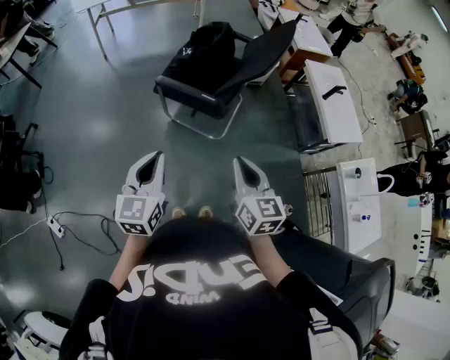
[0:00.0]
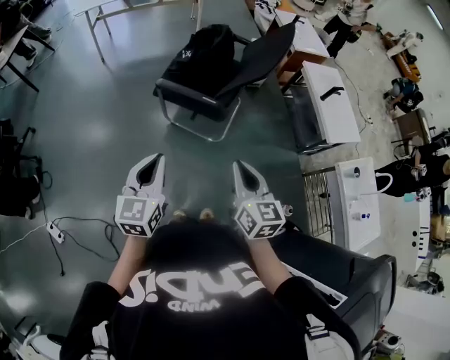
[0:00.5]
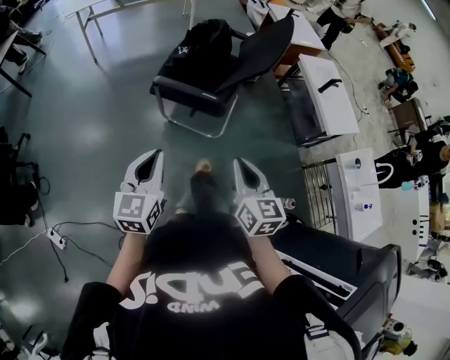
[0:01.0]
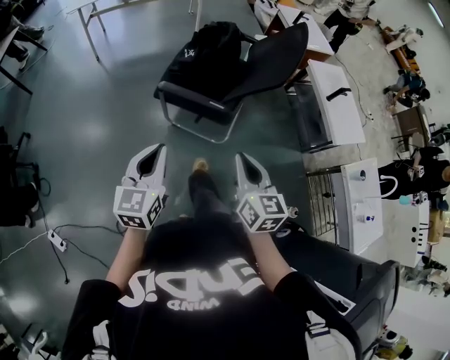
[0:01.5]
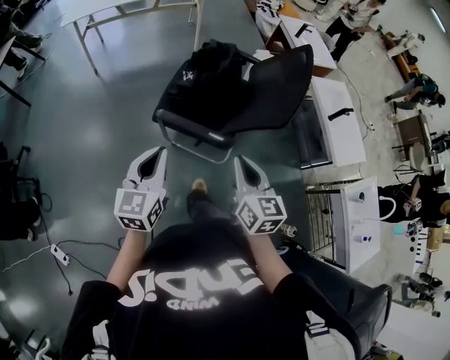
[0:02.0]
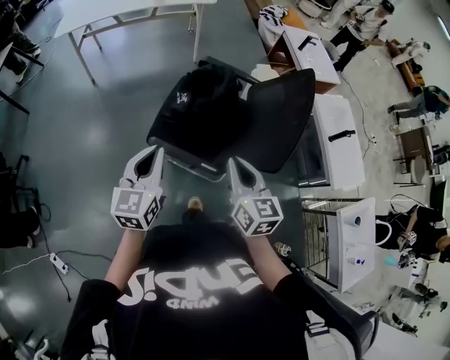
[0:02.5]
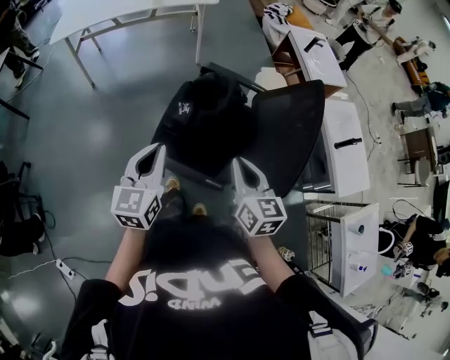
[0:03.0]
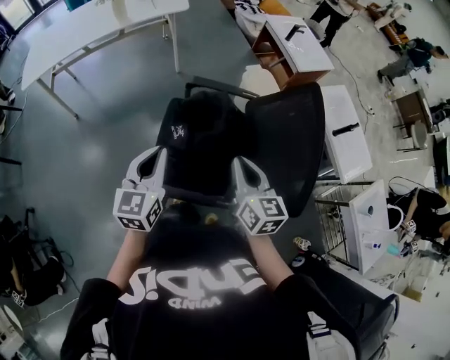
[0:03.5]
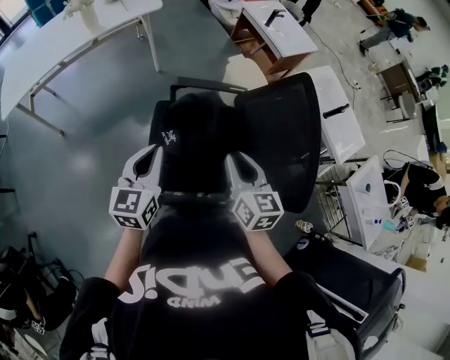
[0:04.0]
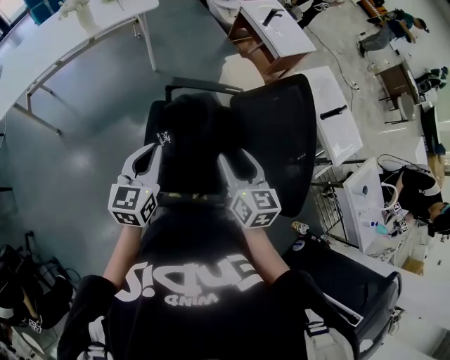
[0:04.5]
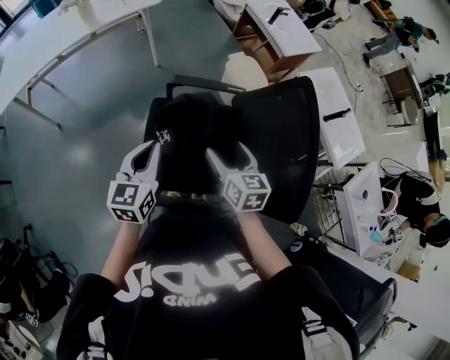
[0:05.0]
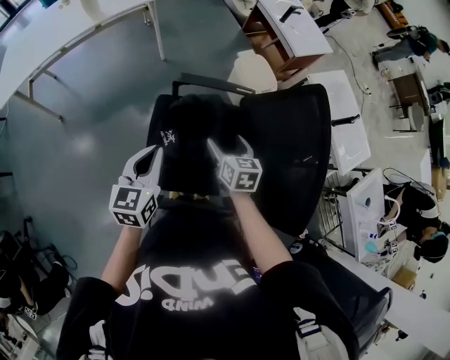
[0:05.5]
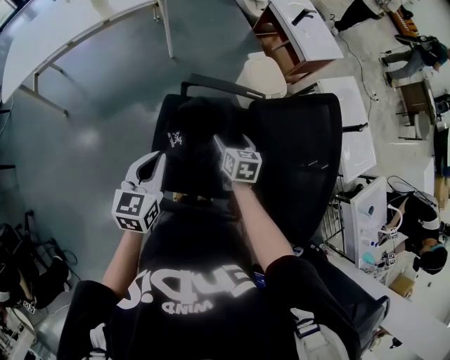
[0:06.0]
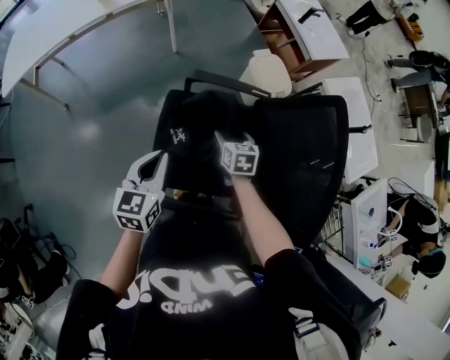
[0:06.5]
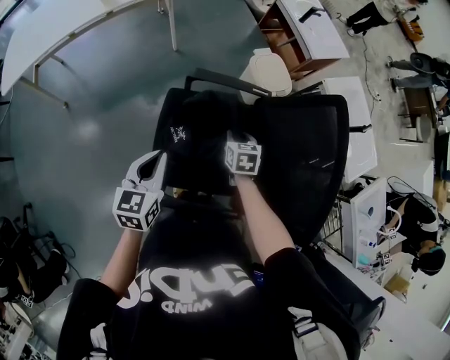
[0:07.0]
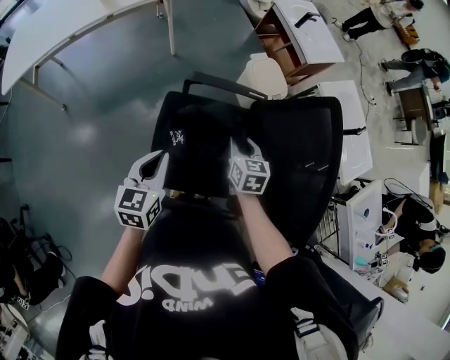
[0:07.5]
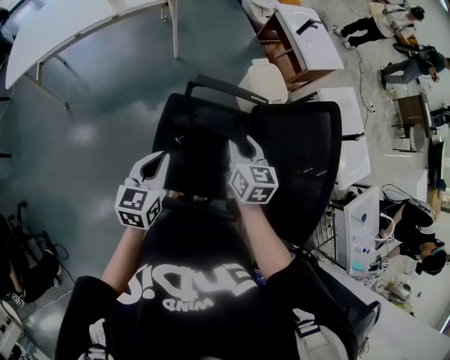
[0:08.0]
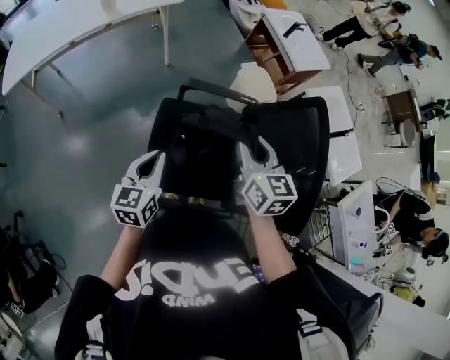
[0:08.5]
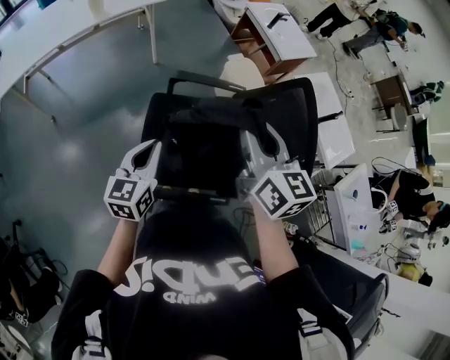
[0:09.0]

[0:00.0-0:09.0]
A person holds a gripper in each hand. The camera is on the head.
0:00.0 to 0:02.0: The grippers both shift forward by some 25 cm.
0:02.0 to 0:04.5: The pair of grippers is taken forward, about 50 cm. The right gripper opens its fingers.
0:04.5 to 0:07.0: The right gripper heads downward and forward, covering approximately 30 cm, changes its angle by roughly 30 degrees, and closes up; the left gripper travels downward and to the left by about 10 cm.
0:07.0 to 0:09.0: The left gripper moves upward and backward, about 10 cm; the right gripper travels upward by roughly 35 cm, and tips its fingers upward by approximately 40 degrees.

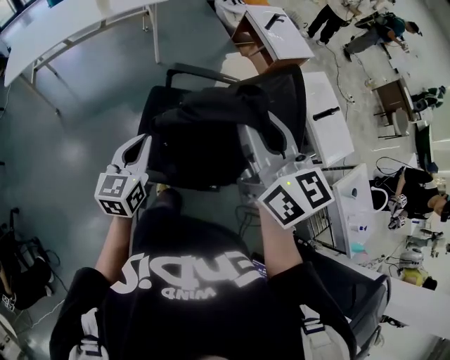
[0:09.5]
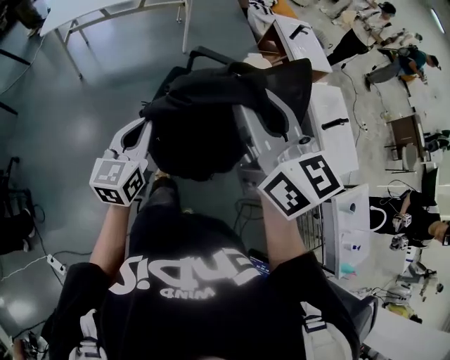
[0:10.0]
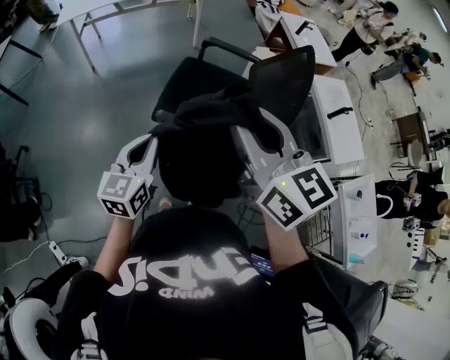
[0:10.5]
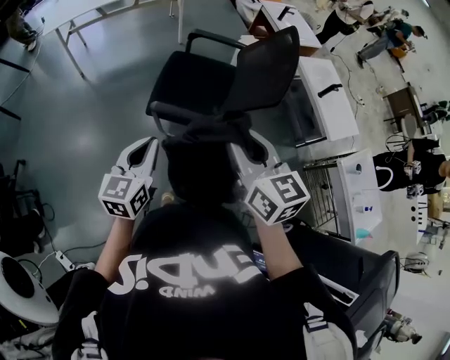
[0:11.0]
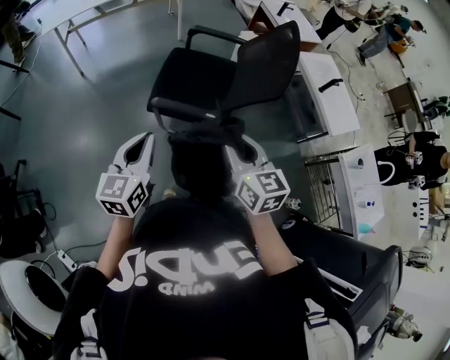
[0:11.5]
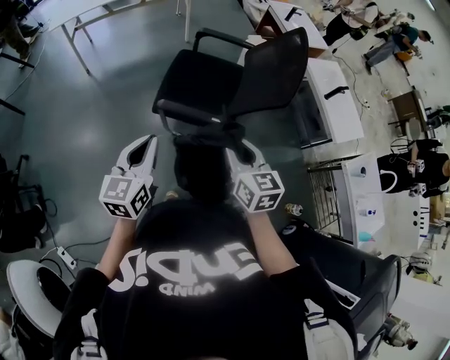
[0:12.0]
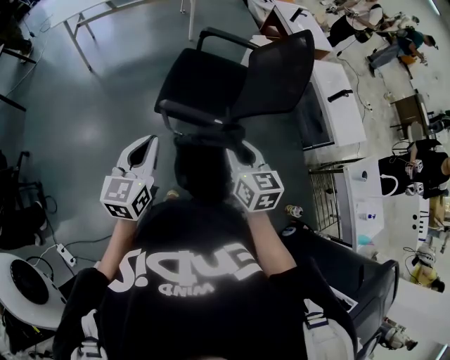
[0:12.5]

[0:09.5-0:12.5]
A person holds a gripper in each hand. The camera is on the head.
0:09.5 to 0:11.0: Both grippers travel together backward, approximately 40 cm.
0:11.0 to 0:12.5: The right gripper moves downward, some 15 cm.

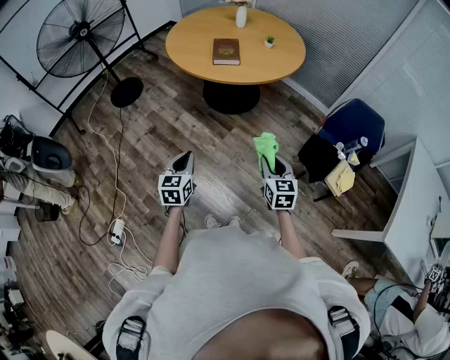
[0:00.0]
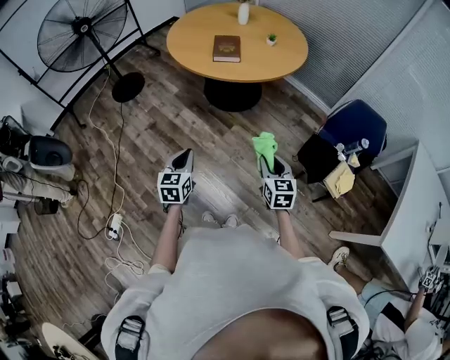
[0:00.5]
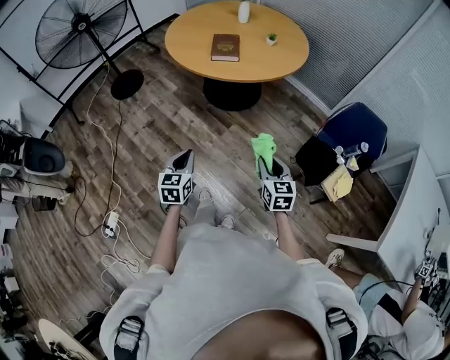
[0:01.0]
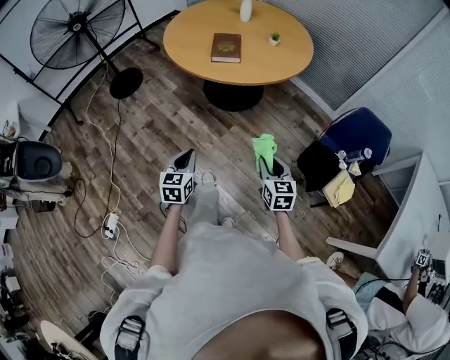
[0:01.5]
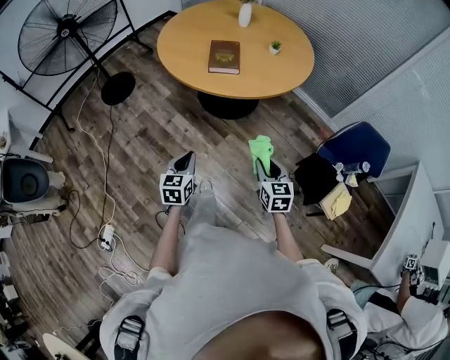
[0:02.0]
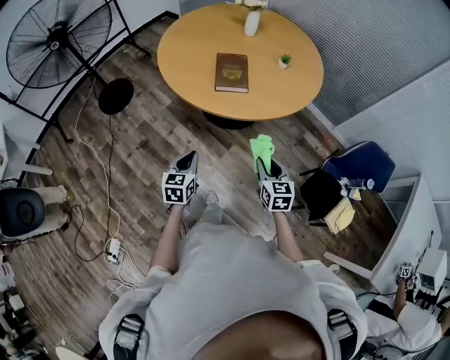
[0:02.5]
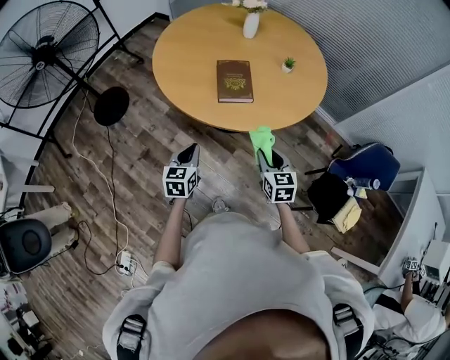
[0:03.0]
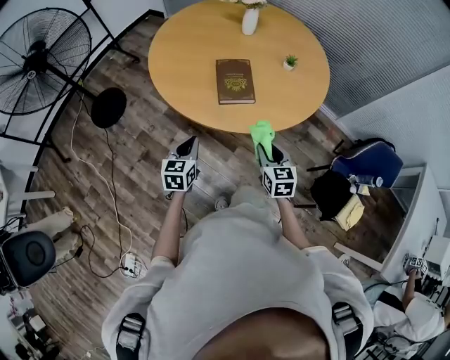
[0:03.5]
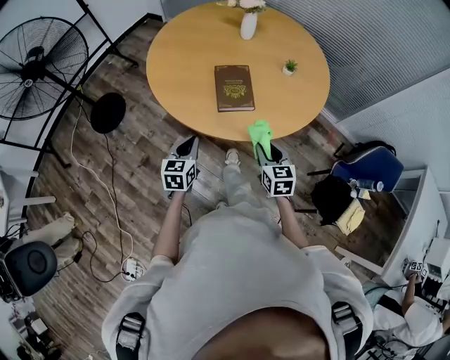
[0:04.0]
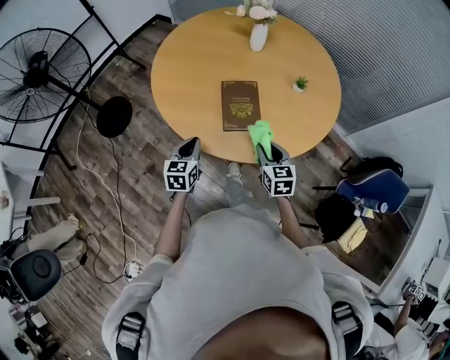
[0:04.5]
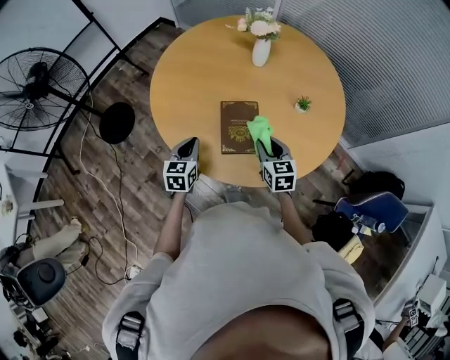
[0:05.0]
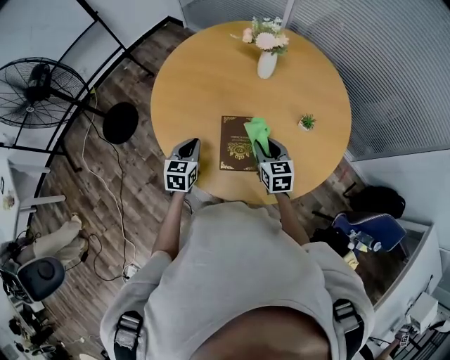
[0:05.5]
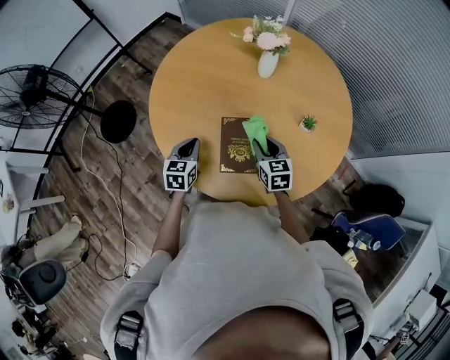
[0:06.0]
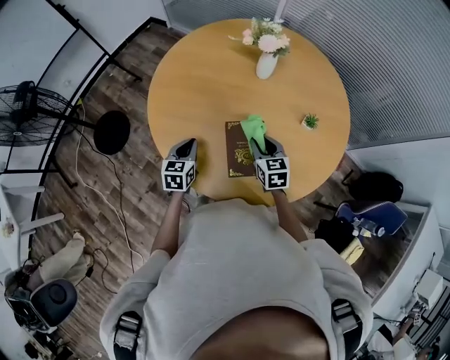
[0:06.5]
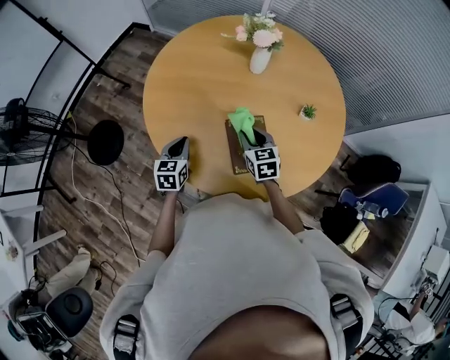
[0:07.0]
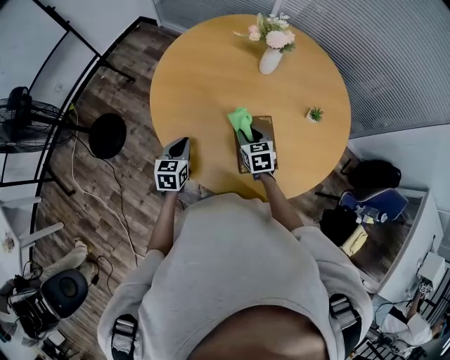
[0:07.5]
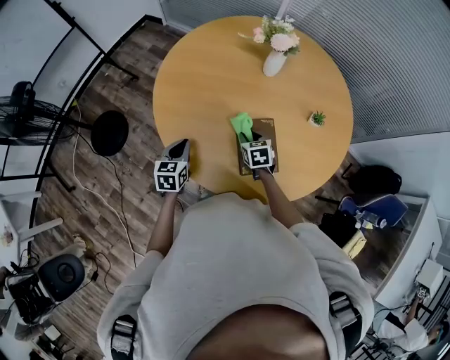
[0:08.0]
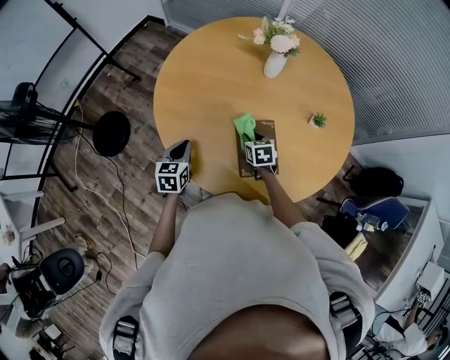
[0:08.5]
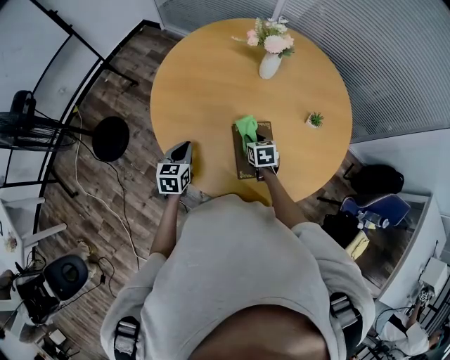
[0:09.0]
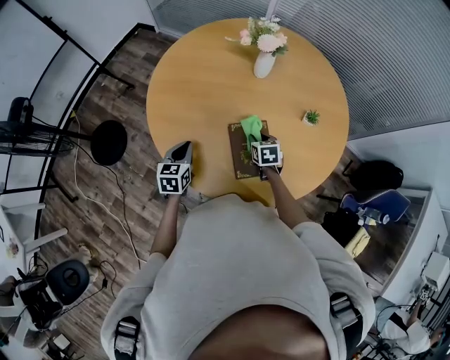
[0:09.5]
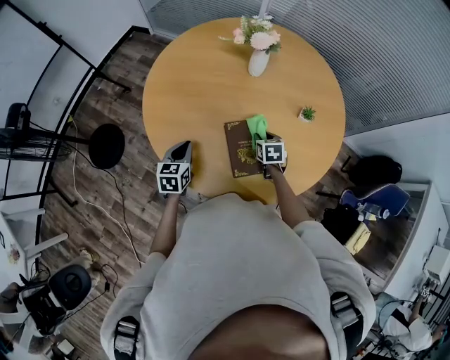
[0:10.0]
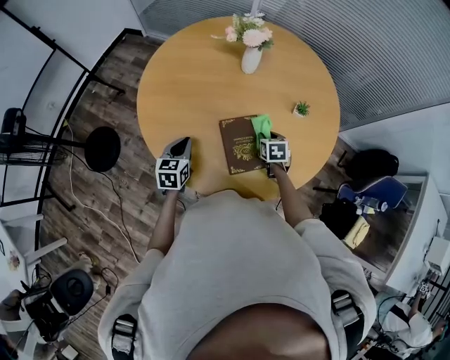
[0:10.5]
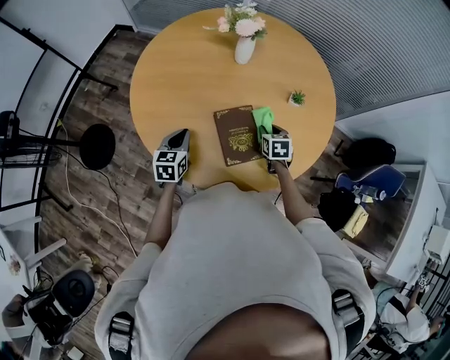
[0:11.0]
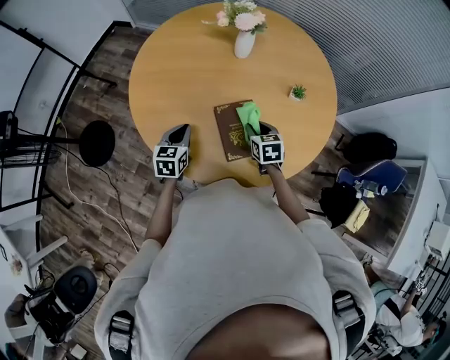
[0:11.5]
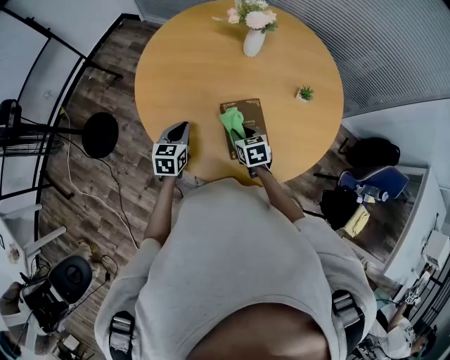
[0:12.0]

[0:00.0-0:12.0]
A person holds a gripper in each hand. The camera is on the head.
0:00.0 to 0:02.0: The two grippers go approximately 15 cm forward.
0:02.0 to 0:04.0: The left gripper moves forward, roughly 30 cm; the right gripper goes about 30 cm forward and to the left.
0:04.0 to 0:06.0: Both grippers move forward, approximately 30 cm.
0:06.0 to 0:08.0: The left gripper travels to the left by roughly 10 cm. The right gripper goes about 15 cm to the left and downward.
0:08.0 to 0:10.0: The right gripper goes some 10 cm to the right.
0:10.0 to 0:12.0: The right gripper is displaced to the left and backward by some 10 cm.

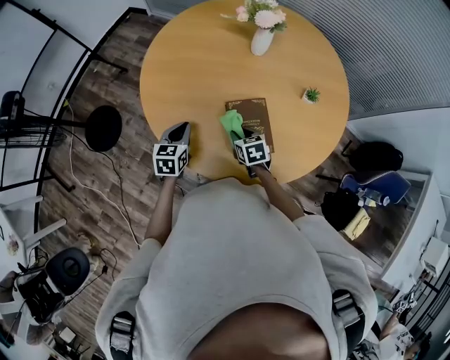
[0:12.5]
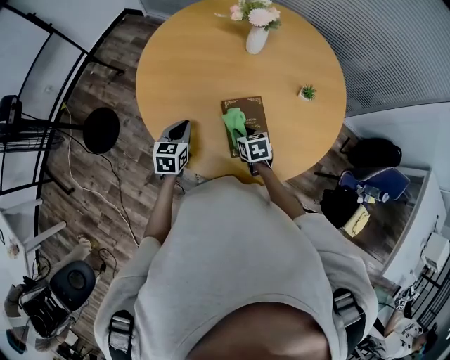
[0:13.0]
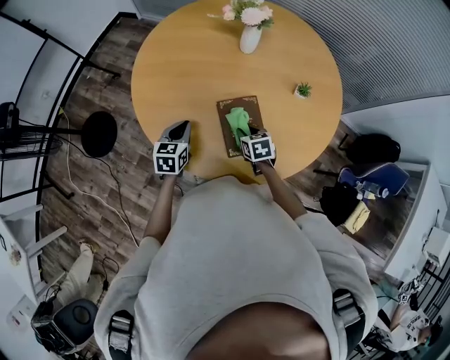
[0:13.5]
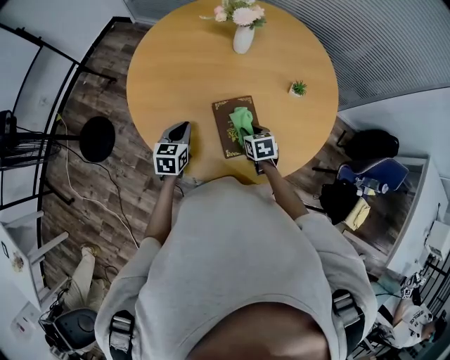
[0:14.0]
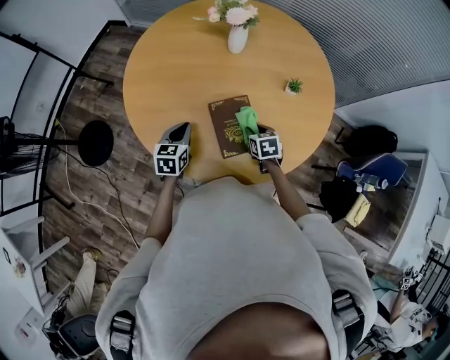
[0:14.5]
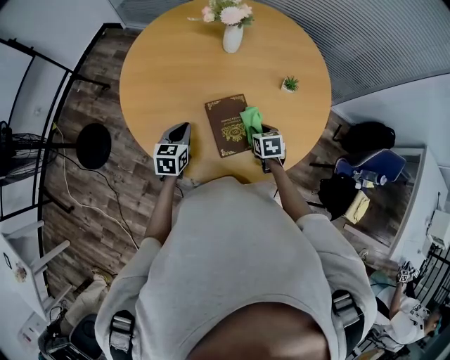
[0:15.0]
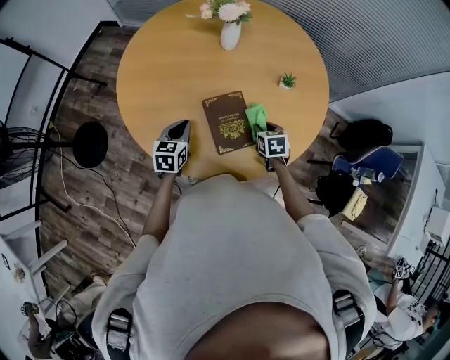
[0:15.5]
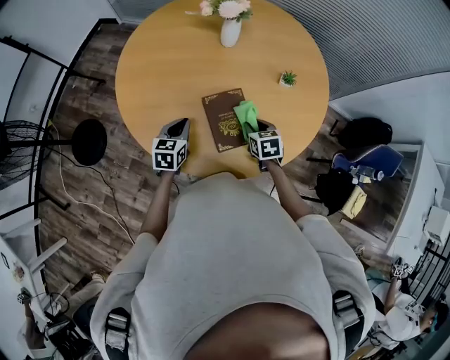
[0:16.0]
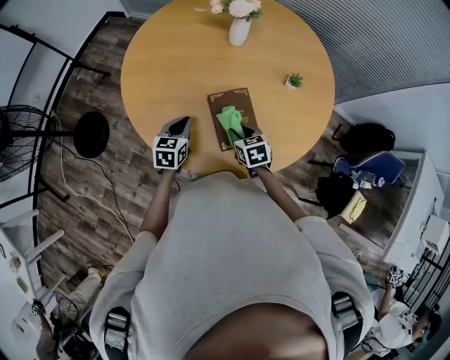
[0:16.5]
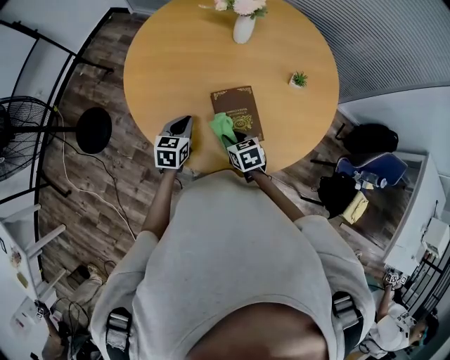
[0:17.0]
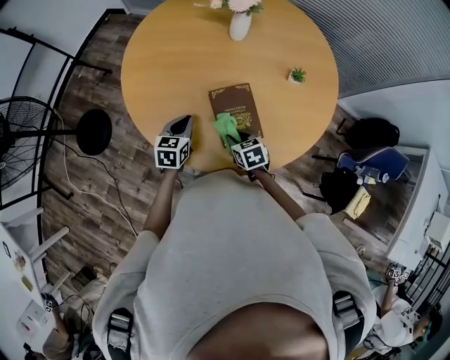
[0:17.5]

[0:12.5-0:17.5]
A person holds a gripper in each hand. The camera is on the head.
0:12.5 to 0:15.0: The left gripper shifts about 5 cm to the right, while the right gripper heads to the right, covering about 15 cm.
0:15.0 to 0:17.5: The right gripper heads to the left and backward, covering about 15 cm.
